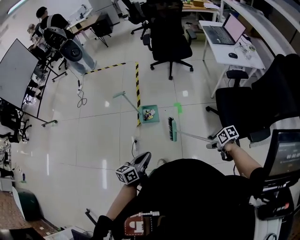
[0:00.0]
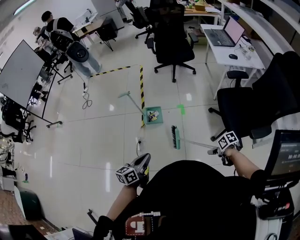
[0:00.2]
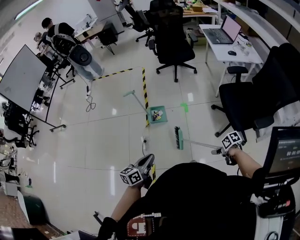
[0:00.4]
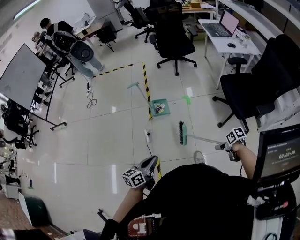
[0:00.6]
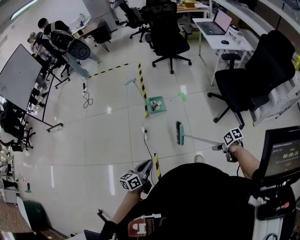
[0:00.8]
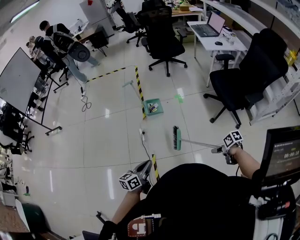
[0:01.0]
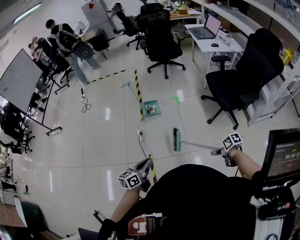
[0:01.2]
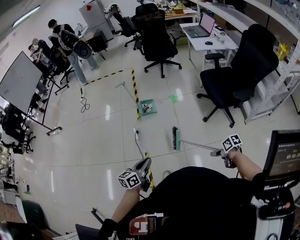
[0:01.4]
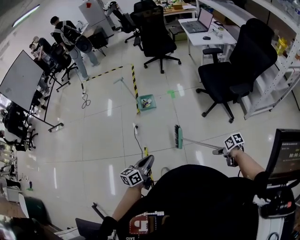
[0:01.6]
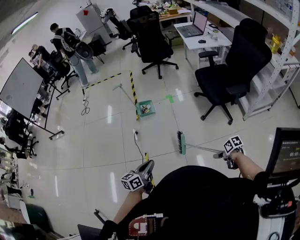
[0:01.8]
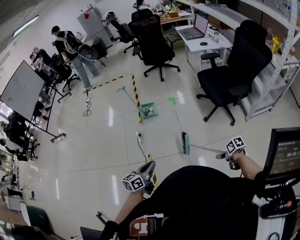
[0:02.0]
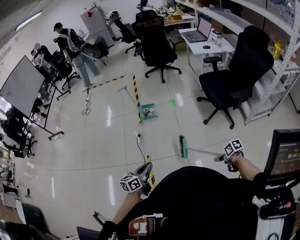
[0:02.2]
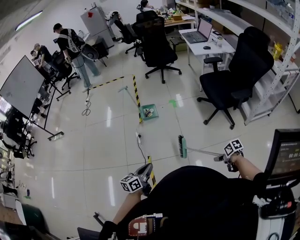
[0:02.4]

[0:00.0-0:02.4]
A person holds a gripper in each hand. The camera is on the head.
0.0 to 1.2 s: The left gripper moves roughly 30 cm.

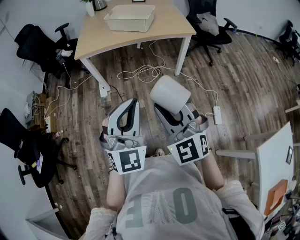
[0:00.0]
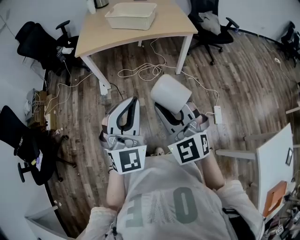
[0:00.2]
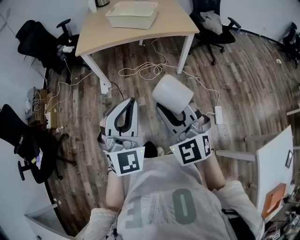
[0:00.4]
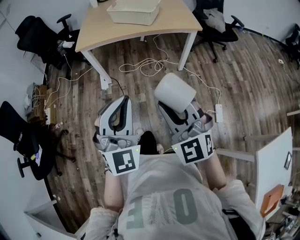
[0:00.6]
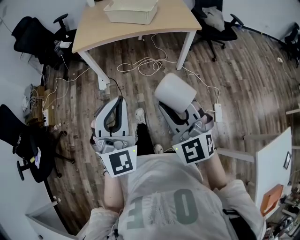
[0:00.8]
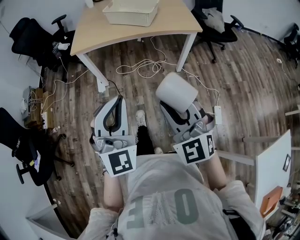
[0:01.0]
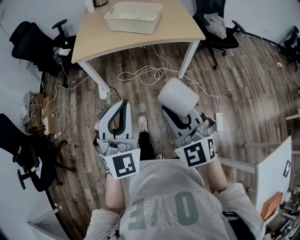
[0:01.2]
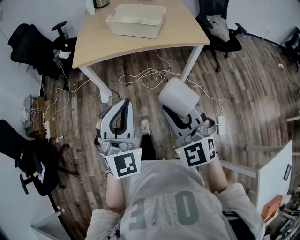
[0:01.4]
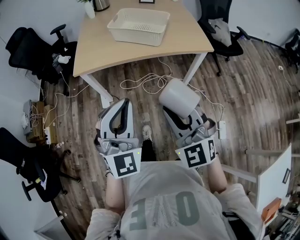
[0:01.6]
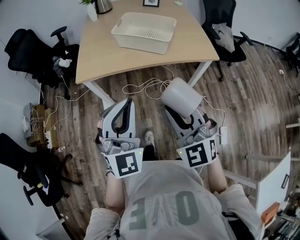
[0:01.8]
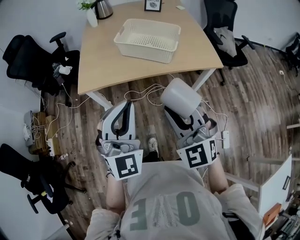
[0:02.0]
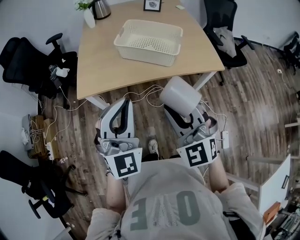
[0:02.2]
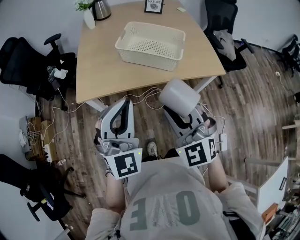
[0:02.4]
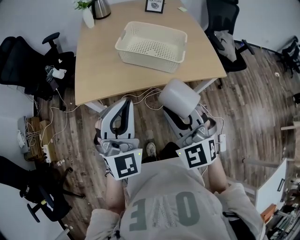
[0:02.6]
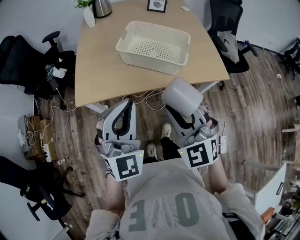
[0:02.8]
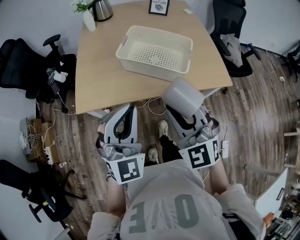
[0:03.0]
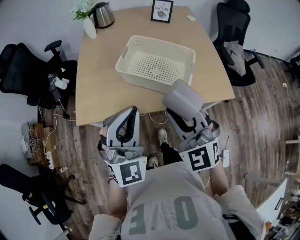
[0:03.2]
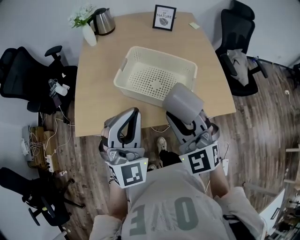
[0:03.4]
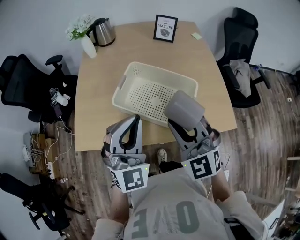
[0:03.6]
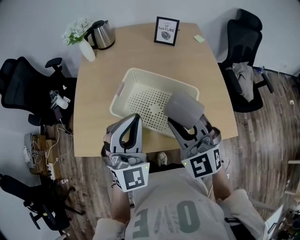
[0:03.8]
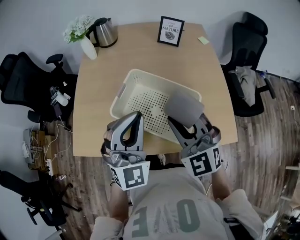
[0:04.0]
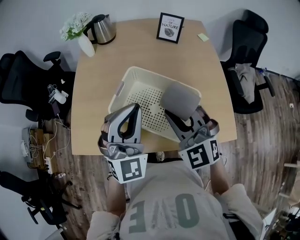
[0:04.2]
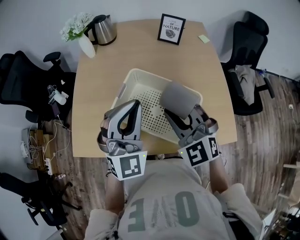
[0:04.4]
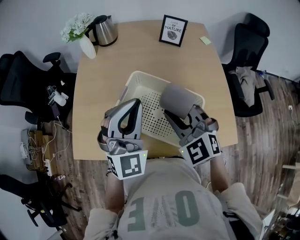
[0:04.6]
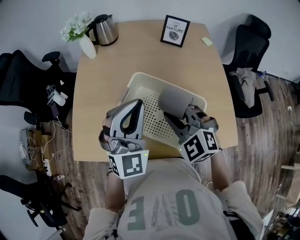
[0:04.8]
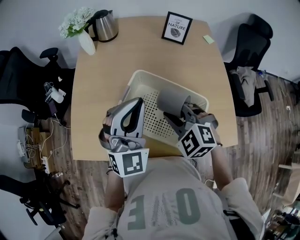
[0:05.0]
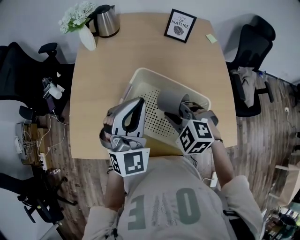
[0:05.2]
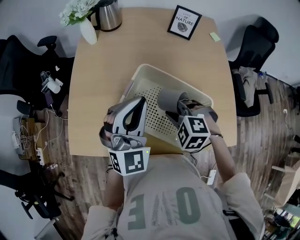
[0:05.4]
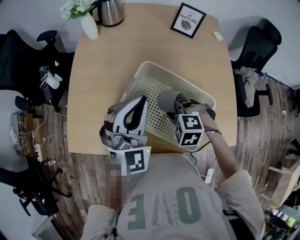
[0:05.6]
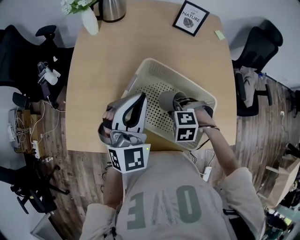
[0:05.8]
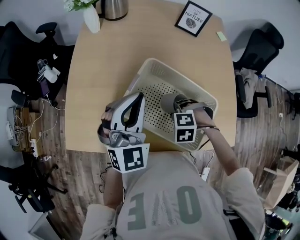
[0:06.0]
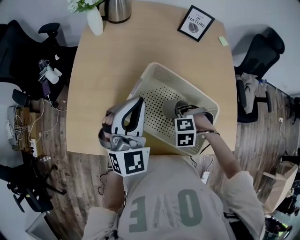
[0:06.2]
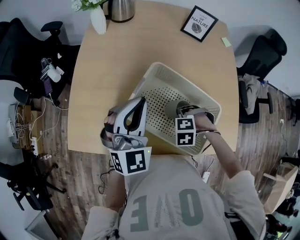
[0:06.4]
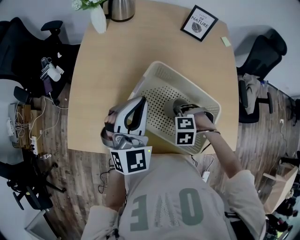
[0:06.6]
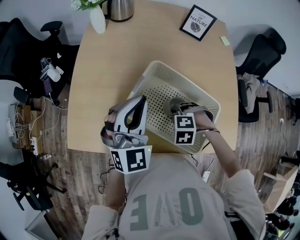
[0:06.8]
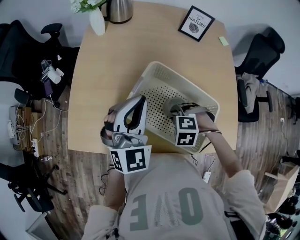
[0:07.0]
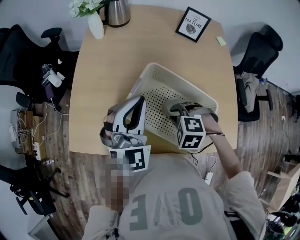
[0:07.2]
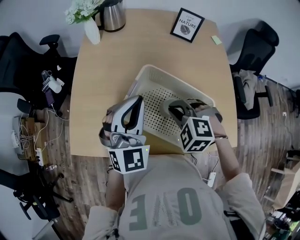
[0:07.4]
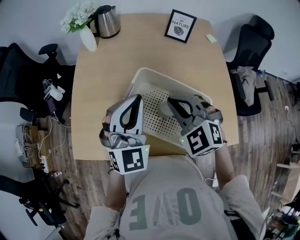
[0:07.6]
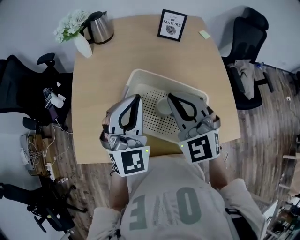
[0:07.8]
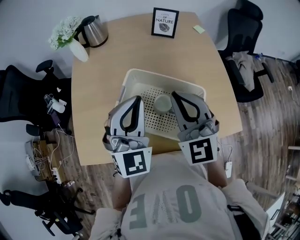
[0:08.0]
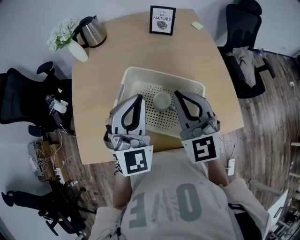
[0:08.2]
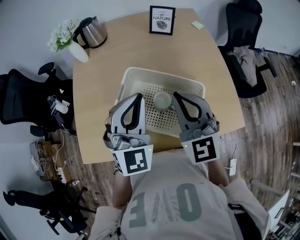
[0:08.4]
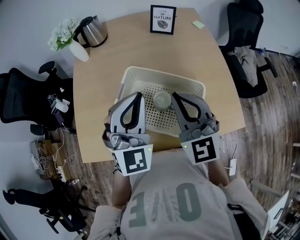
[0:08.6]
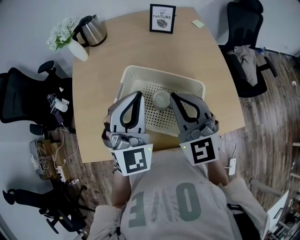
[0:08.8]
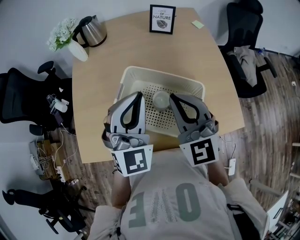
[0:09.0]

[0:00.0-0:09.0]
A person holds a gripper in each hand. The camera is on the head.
0.0 to 1.6 s: The grippers both shift forward by approximately 25 cm.
1.6 to 3.0 s: Both grippers move forward, approximately 30 cm.
3.0 to 4.4 s: Both grippers travel together forward, roughly 30 cm.
4.4 to 6.0 s: The right gripper moves downward, some 25 cm, and angles its fingers downward, by about 60 degrees. The left gripper changes place by approximately 10 cm.
6.0 to 7.6 s: The right gripper travels upward by approximately 20 cm, and tilts its fingers about 50 degrees upward.
7.6 to 9.0 s: The right gripper goes some 10 cm upward and to the right, and turns by roughly 30 degrees. The left gripper goes about 5 cm to the right.

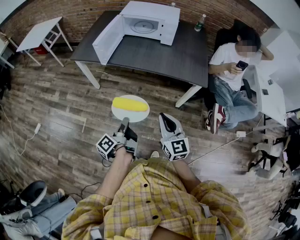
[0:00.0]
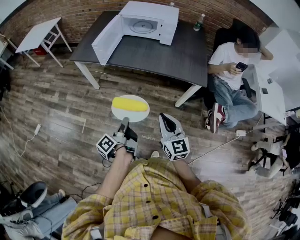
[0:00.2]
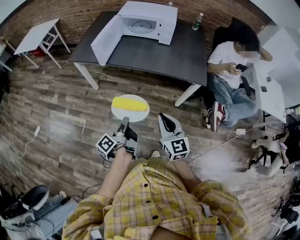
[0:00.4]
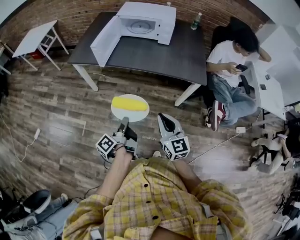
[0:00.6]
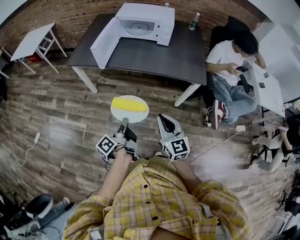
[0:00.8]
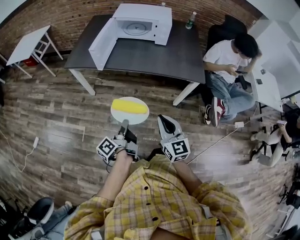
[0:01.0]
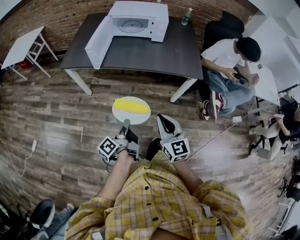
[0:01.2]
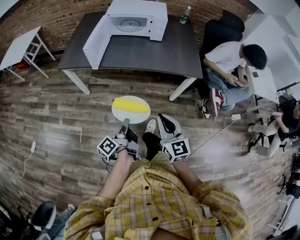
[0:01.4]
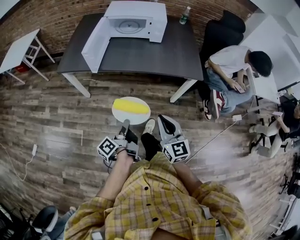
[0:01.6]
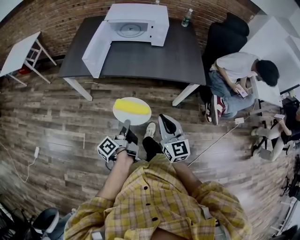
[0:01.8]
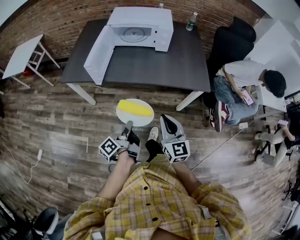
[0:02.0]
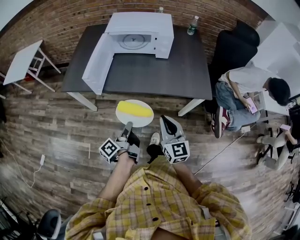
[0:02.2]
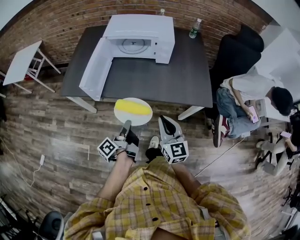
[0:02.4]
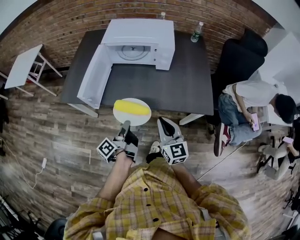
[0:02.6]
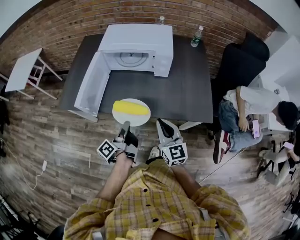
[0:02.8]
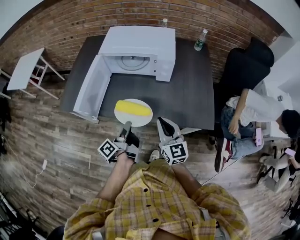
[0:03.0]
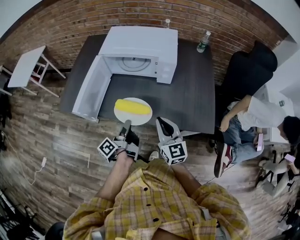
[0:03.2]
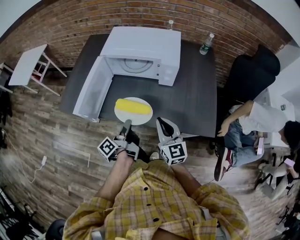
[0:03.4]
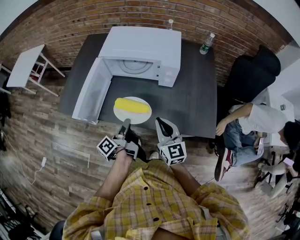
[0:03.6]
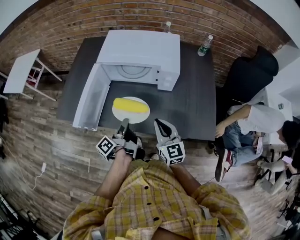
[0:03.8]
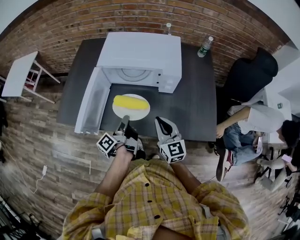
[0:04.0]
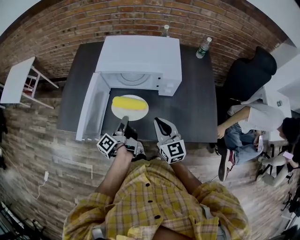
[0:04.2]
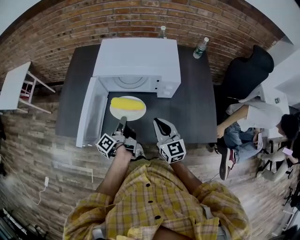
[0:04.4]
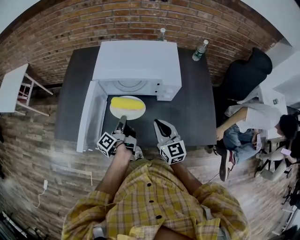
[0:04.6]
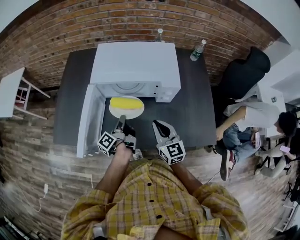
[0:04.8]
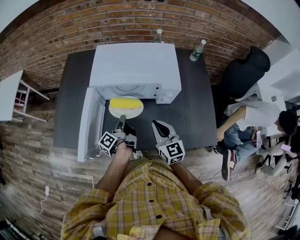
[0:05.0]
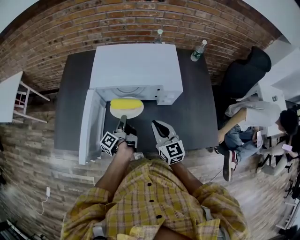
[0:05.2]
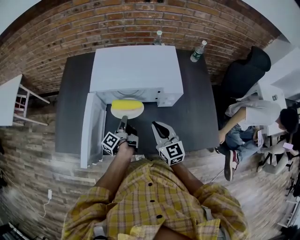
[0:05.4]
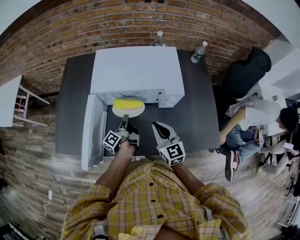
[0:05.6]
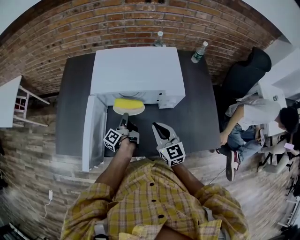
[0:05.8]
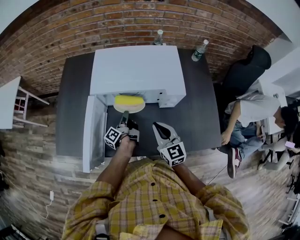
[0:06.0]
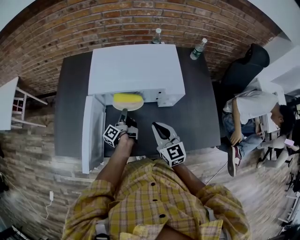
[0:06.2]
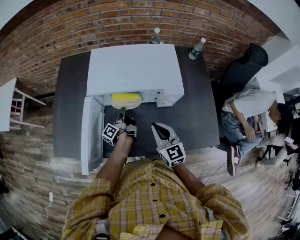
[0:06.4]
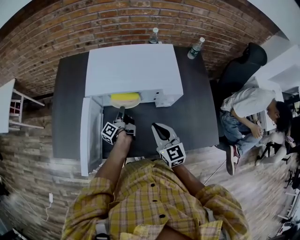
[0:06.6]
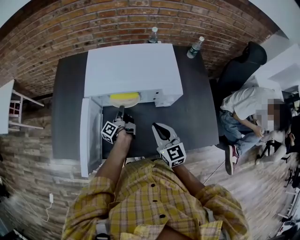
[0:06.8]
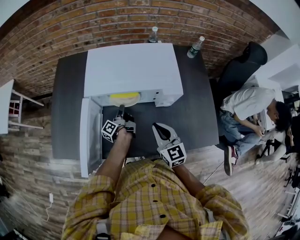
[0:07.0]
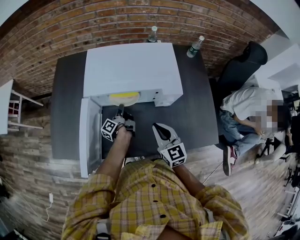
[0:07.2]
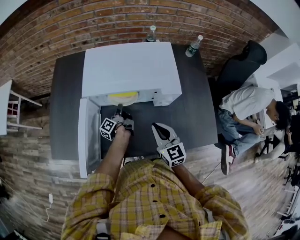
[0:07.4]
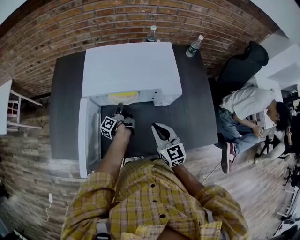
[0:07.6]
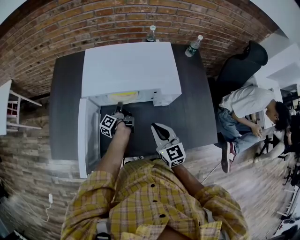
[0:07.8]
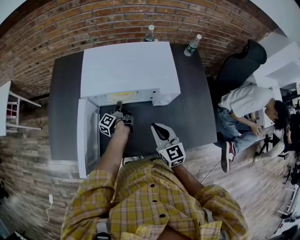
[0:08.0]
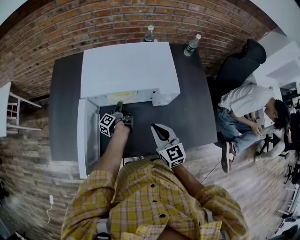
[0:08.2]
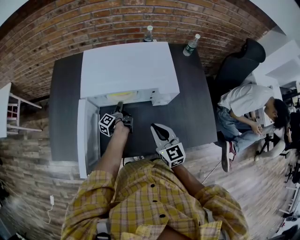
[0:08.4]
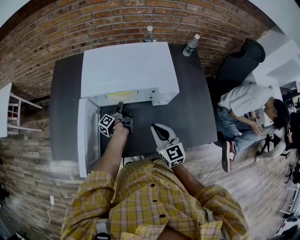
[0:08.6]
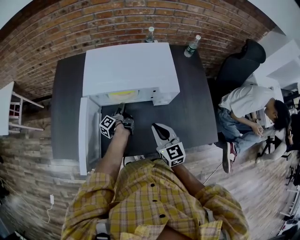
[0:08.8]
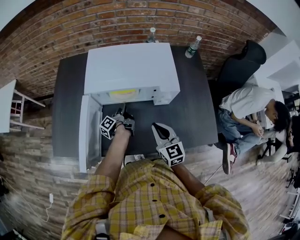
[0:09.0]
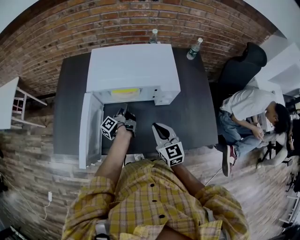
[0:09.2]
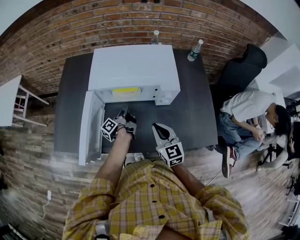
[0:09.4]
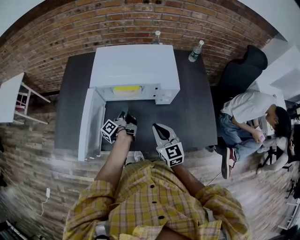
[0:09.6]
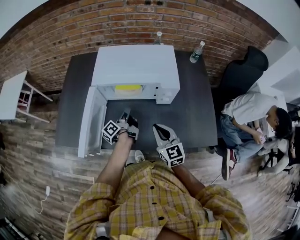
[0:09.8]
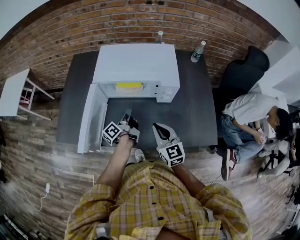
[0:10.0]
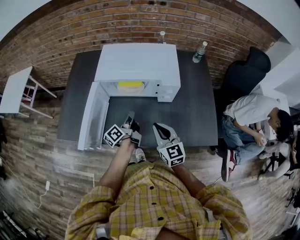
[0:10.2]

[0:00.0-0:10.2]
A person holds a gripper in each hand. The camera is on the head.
0.0 to 1.4 s: The right gripper ends up some 5 cm from where it was.
1.4 to 3.0 s: The right gripper ends up roughly 35 cm from where it was.
3.0 to 4.4 s: The right gripper moves some 15 cm.
4.4 to 5.8 s: The right gripper moves some 5 cm.
8.8 to 10.2 s: The right gripper changes place by roughly 5 cm.

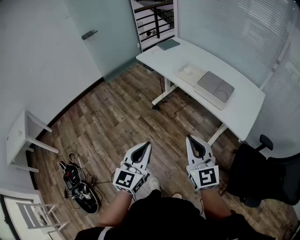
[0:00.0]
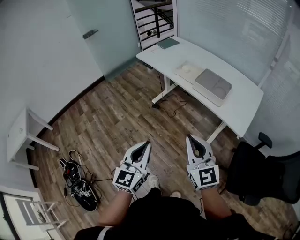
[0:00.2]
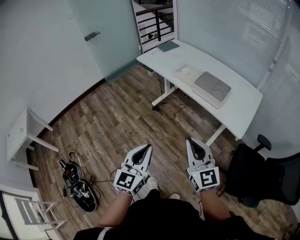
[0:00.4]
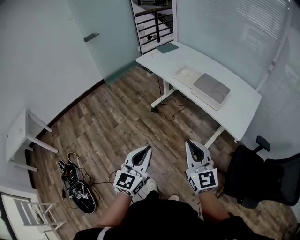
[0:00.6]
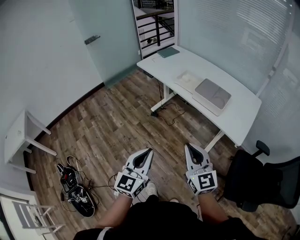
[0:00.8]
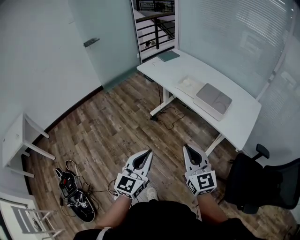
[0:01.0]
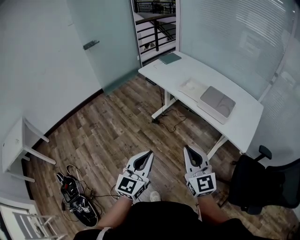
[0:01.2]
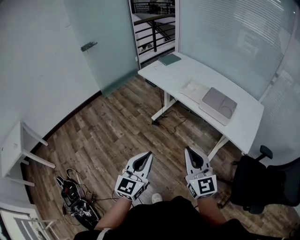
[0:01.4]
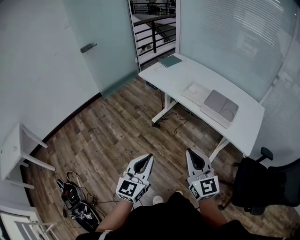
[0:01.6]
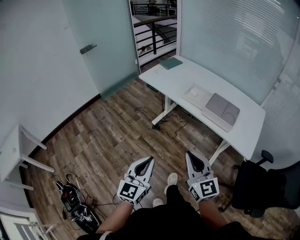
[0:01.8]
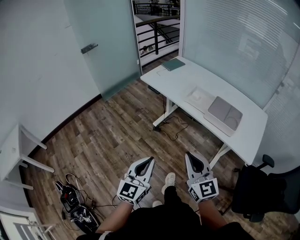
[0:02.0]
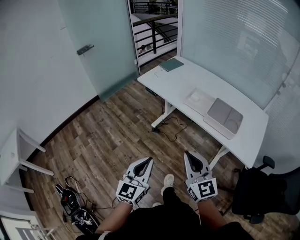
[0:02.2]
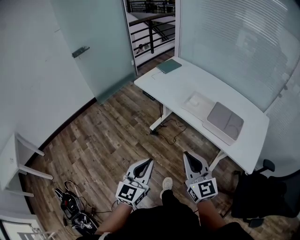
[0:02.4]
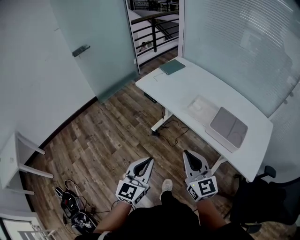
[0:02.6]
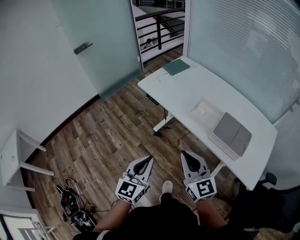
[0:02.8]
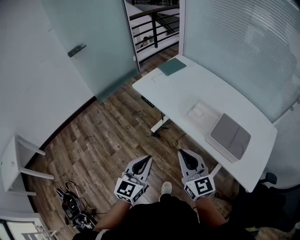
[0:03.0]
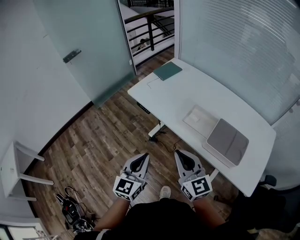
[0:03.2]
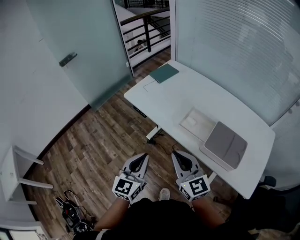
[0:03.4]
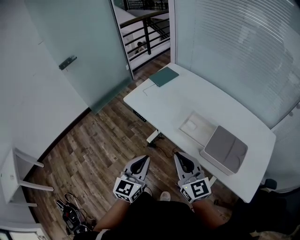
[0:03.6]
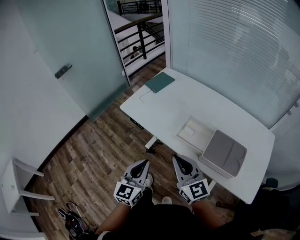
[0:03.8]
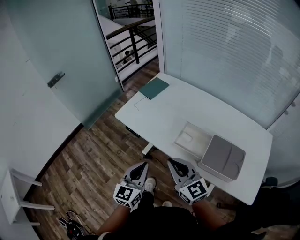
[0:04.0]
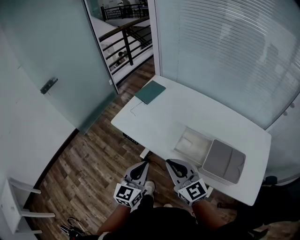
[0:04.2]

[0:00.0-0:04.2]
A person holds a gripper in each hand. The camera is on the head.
0.0 to 1.4 s: The left gripper is displaced to the left and forward by approximately 10 cm; the right gripper shifts approximately 5 cm to the left.
1.4 to 2.8 s: The grippers both shift forward by some 25 cm.
2.8 to 4.2 s: The grippers both shift forward by some 25 cm.
